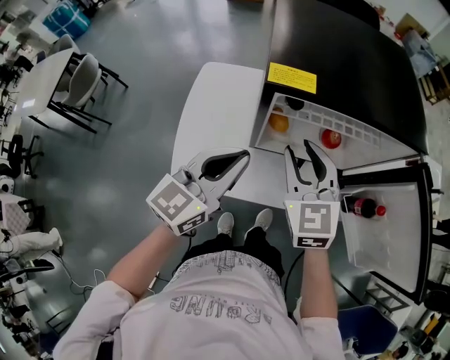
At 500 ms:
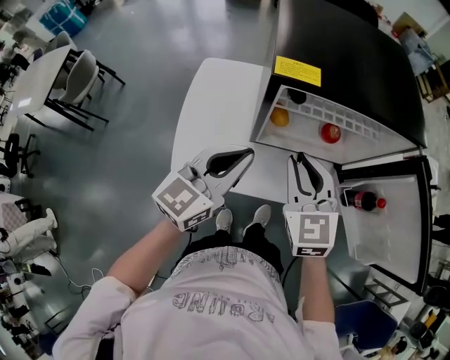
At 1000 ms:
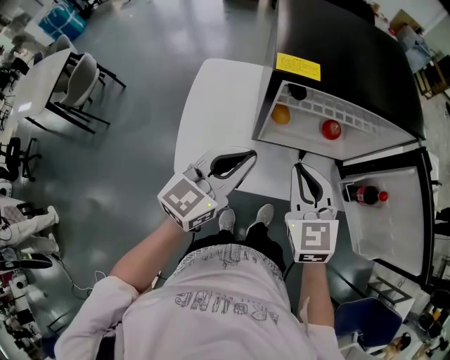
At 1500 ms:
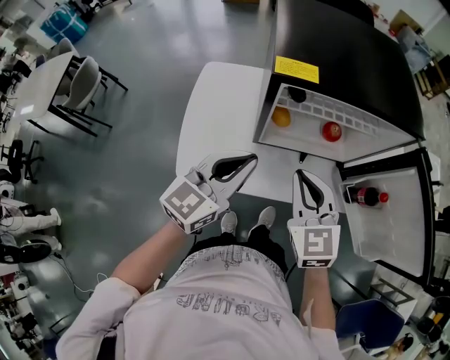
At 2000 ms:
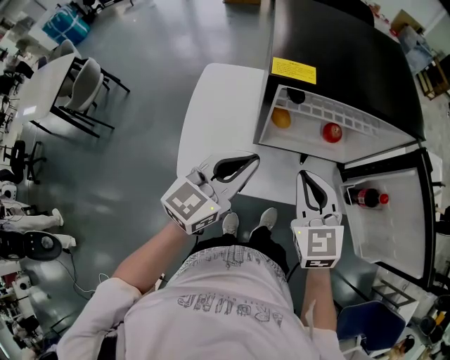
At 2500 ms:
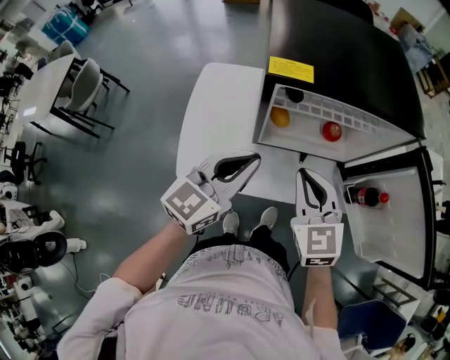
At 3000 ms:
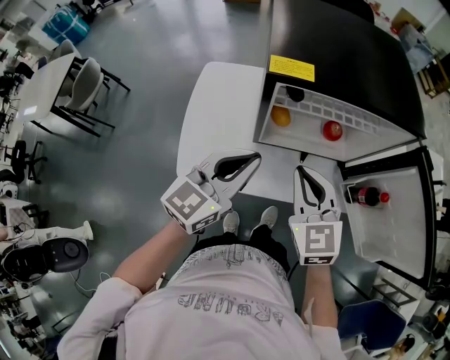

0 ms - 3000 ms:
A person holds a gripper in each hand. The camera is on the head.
0 ms - 1500 ms: The right gripper travels backward by about 10 cm, and closes its fingers.
1500 ms - 3000 ms: The grippers make only small movements.

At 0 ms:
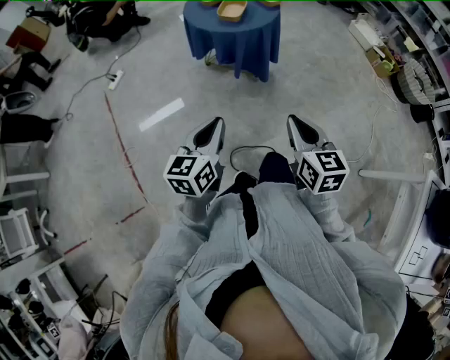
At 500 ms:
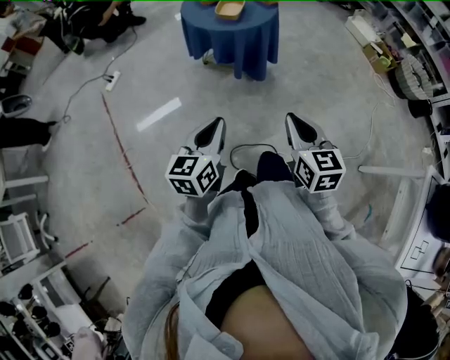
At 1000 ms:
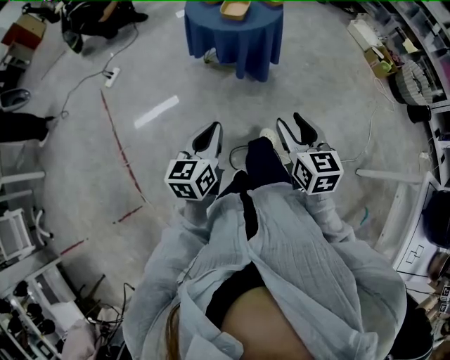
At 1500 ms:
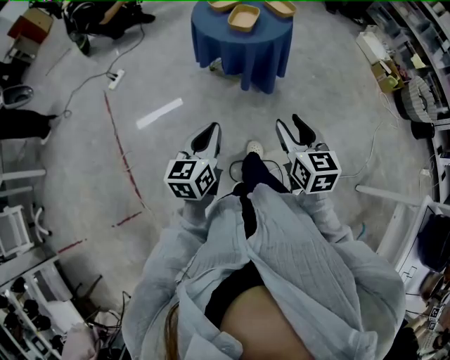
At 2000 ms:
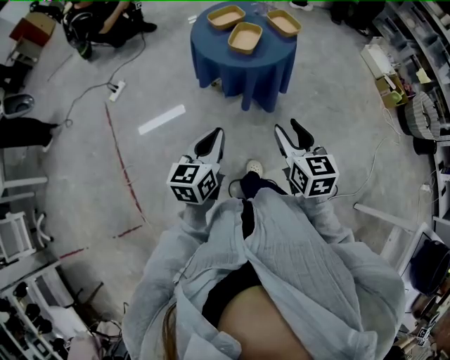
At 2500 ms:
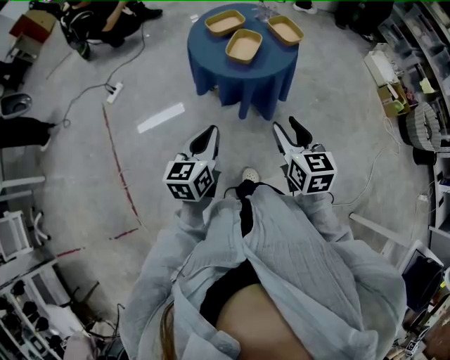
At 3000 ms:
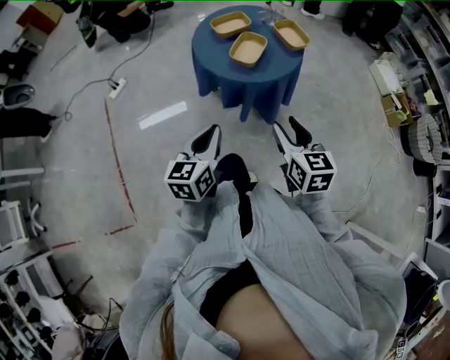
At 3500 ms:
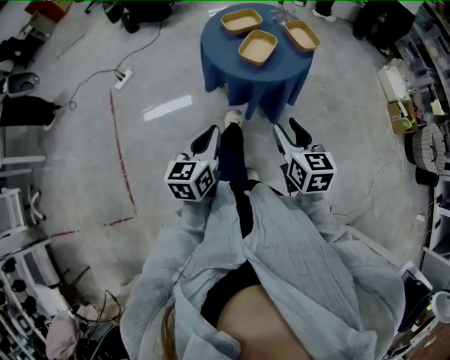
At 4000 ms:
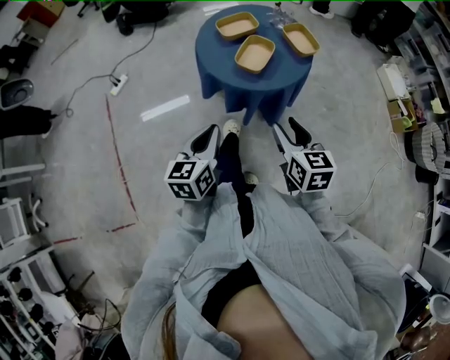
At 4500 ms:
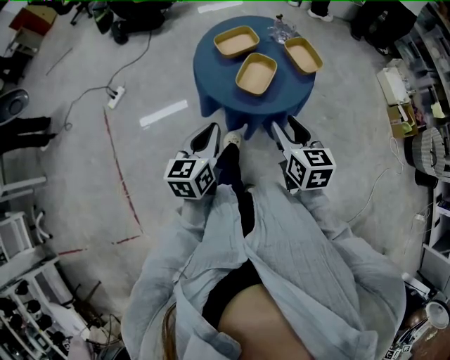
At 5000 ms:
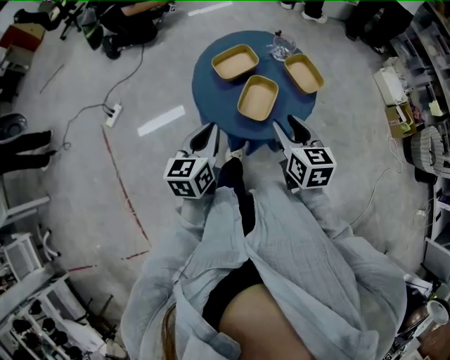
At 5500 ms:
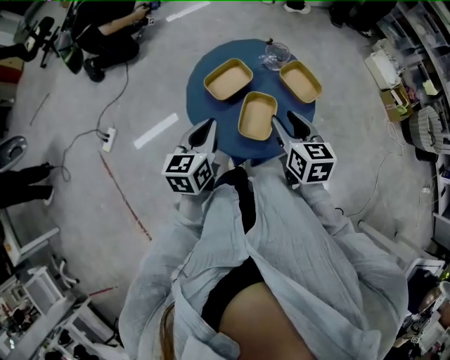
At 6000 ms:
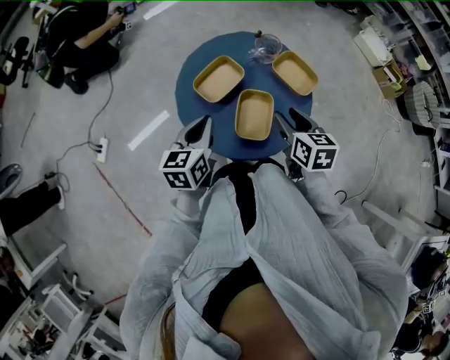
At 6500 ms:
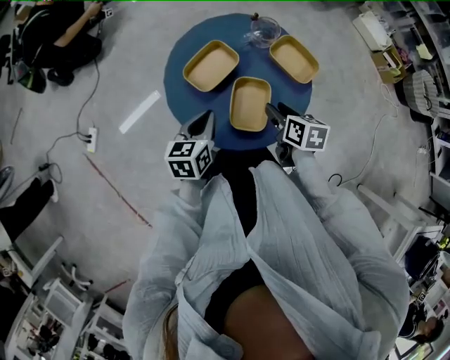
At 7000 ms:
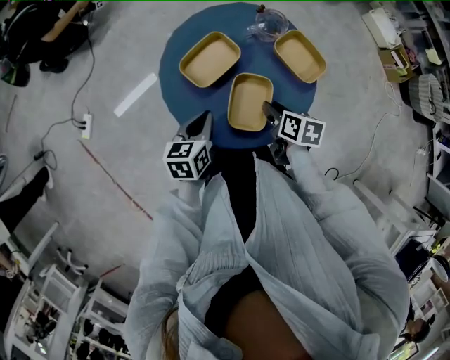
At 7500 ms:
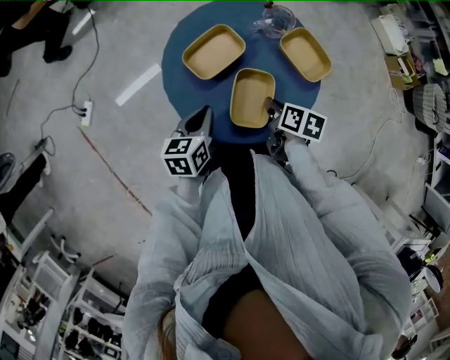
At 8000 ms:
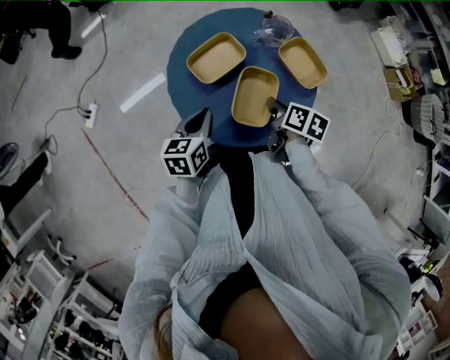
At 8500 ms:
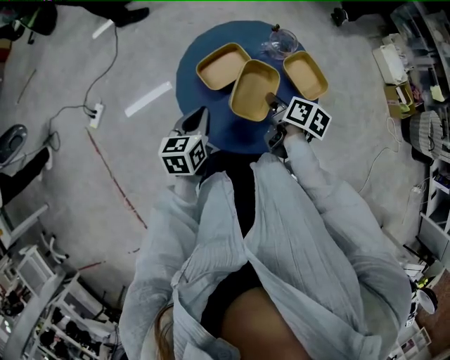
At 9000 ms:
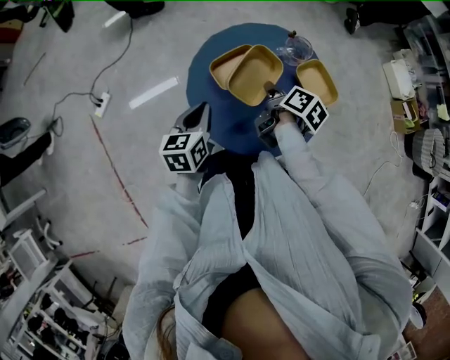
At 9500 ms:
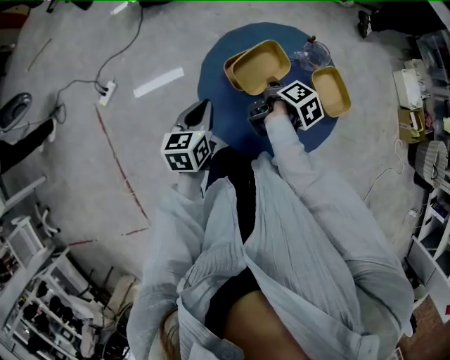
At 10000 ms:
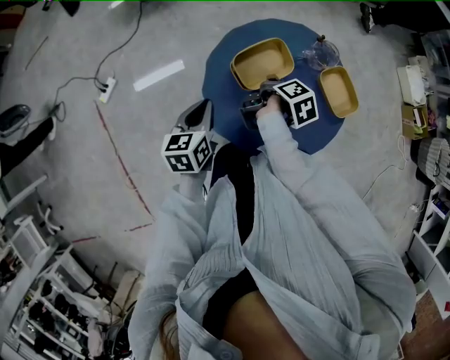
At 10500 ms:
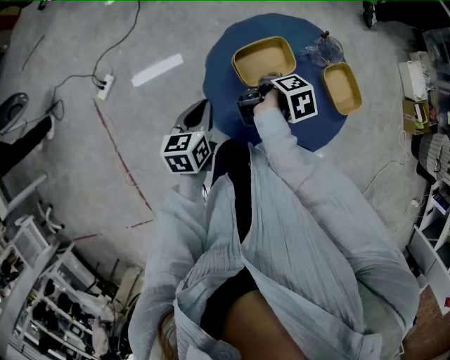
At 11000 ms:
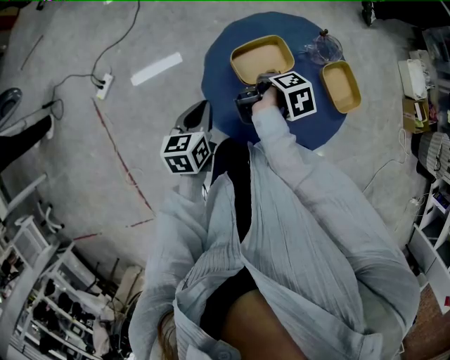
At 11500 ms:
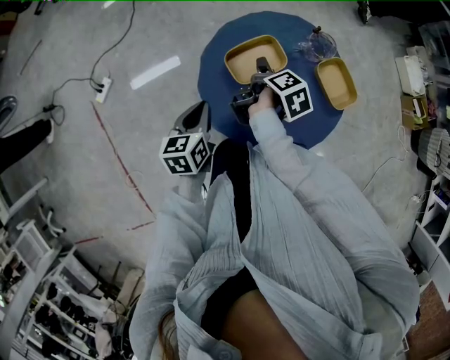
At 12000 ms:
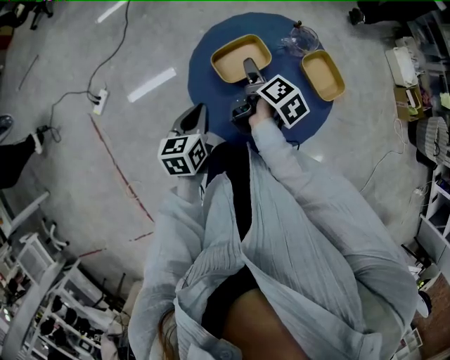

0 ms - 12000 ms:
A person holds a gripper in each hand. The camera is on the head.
0 ms - 2000 ms: Both grippers travel together forward, some 20 cm. The right gripper opens its fingers.
2000 ms - 4000 ms: Both grippers travel together forward, roughly 15 cm.
4000 ms - 6000 ms: The grippers both shift forward by some 30 cm. The left gripper turns by approximately 20 degrees. Meanwhile the right gripper changes its angle by approximately 20 degrees.
6000 ms - 8000 ms: Both grippers move downward, some 10 cm. The right gripper swivels approximately 30 degrees.
8000 ms - 10000 ms: The right gripper goes about 15 cm forward and to the left, and swivels approximately 40 degrees; the left gripper heads to the left, covering some 10 cm.
10000 ms - 12000 ms: The right gripper opens up.

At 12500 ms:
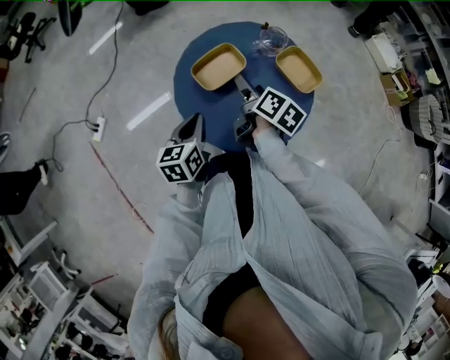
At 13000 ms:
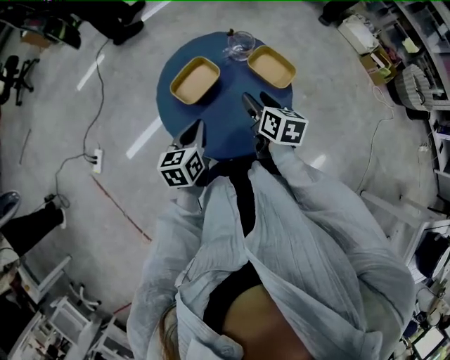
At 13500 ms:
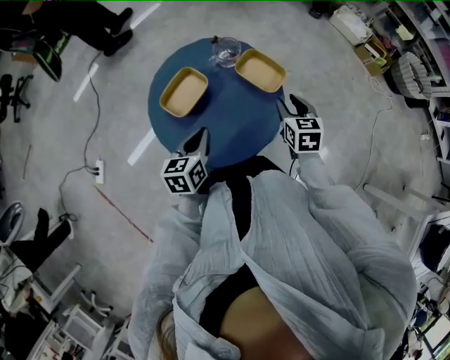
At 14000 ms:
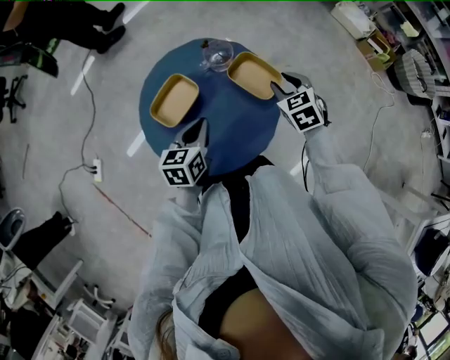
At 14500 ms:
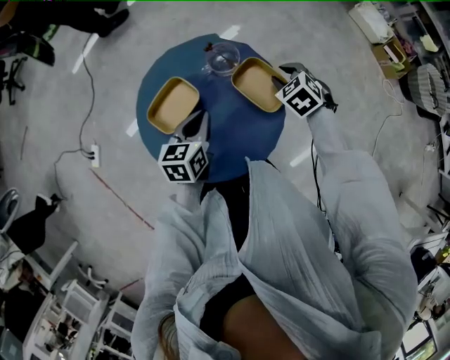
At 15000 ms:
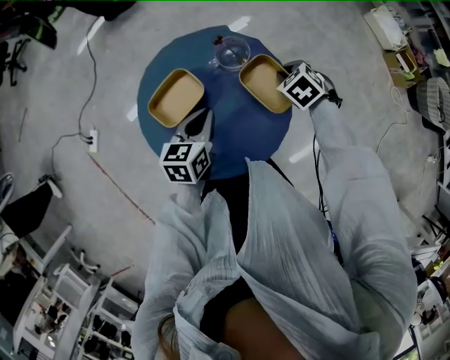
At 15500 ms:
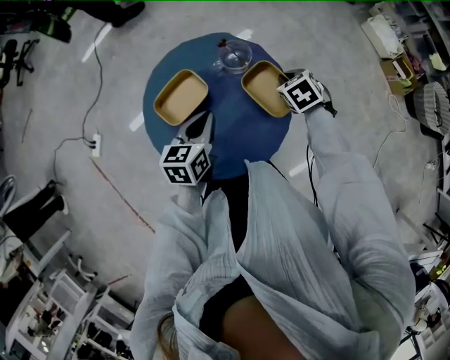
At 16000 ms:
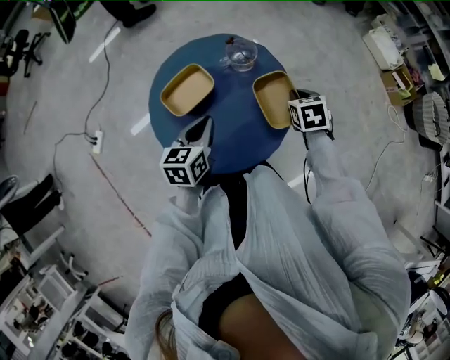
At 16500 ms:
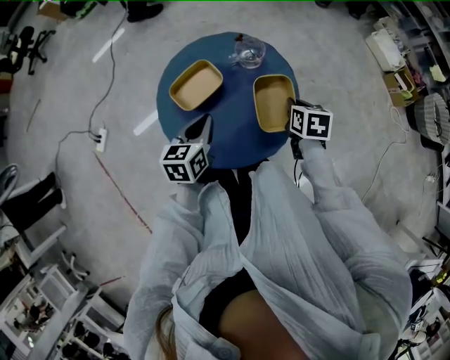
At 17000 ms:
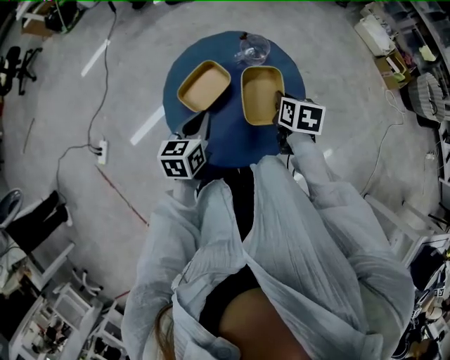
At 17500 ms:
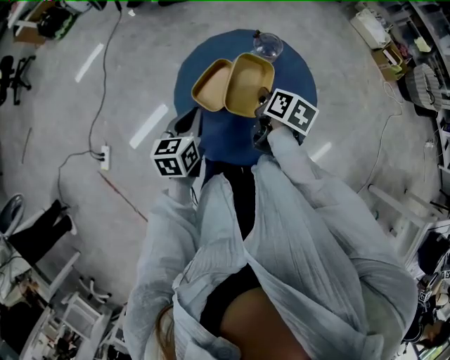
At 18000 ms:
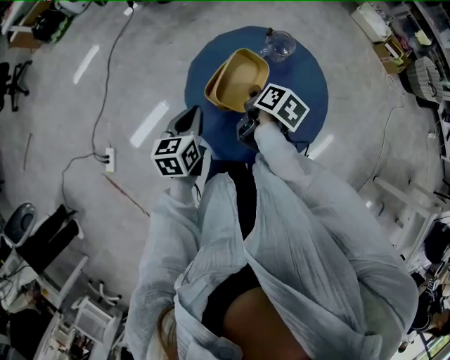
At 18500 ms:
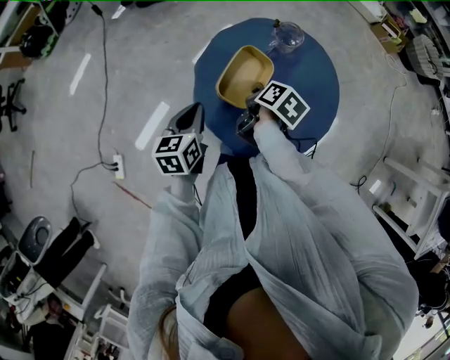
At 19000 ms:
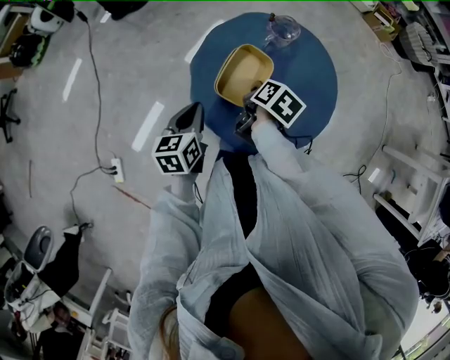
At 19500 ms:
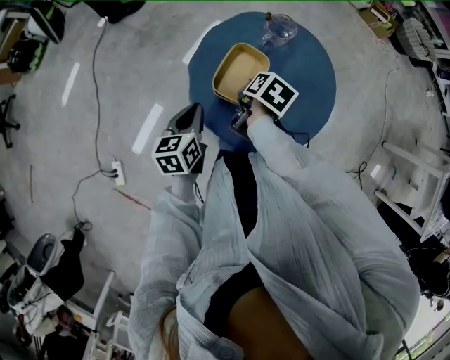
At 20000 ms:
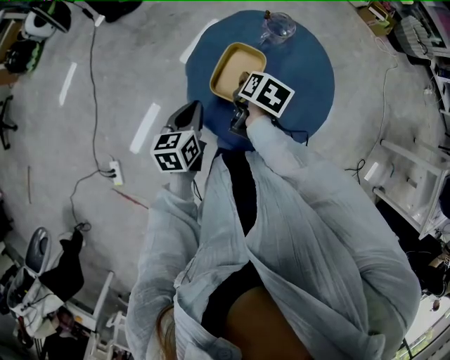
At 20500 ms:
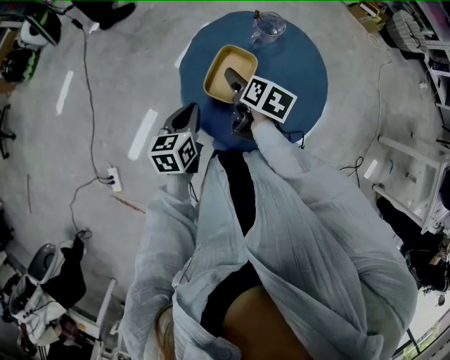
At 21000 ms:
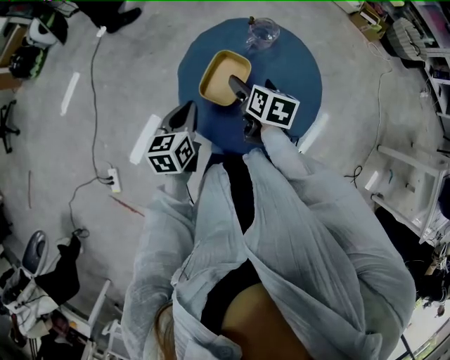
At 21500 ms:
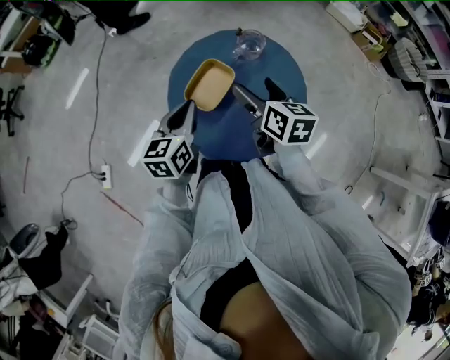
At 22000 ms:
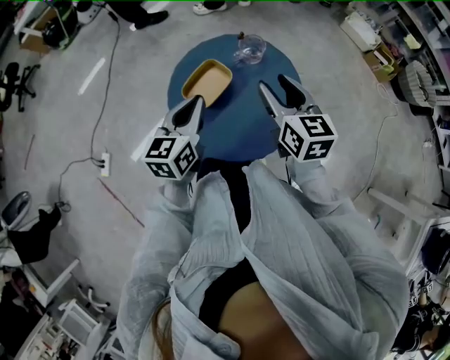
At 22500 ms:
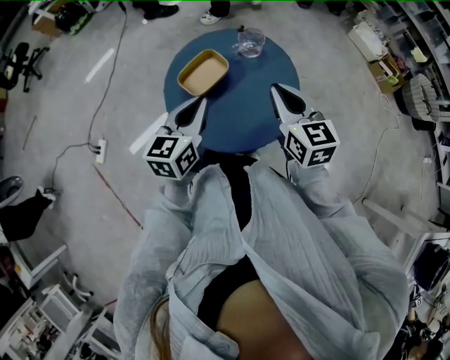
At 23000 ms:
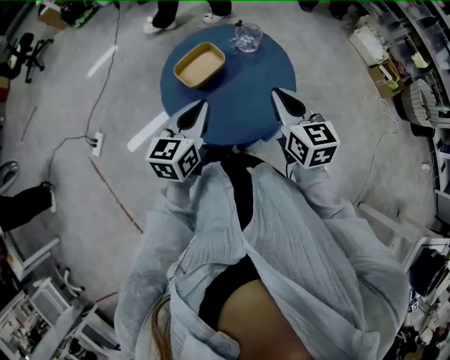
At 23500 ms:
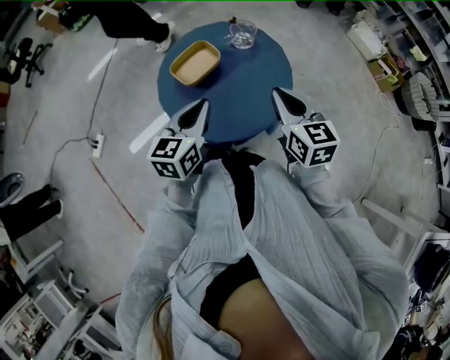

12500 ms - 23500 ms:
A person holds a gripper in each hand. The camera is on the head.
12500 ms - 14500 ms: The two grippers go about 20 cm to the right and forward. The right gripper rolls counterclockwise, seen from behind, by about 80 degrees, and closes up.
14500 ms - 16000 ms: The grippers both shift backward by some 5 cm. The right gripper swivels roughly 30 degrees.
16000 ms - 18000 ms: Both grippers move to the left, approximately 25 cm. The right gripper rotates around the line of its fingers by approximately 70 degrees, clockwise from behind.
18000 ms - 20000 ms: The grippers move only a little.
20000 ms - 21500 ms: The two grippers go approximately 15 cm upward and to the right. The right gripper changes its angle by approximately 40 degrees, and opens up.
21500 ms - 23500 ms: The left gripper goes roughly 15 cm backward and to the right, while the right gripper travels to the right and backward by roughly 15 cm, rotates approximately 30 degrees, and closes its fingers.

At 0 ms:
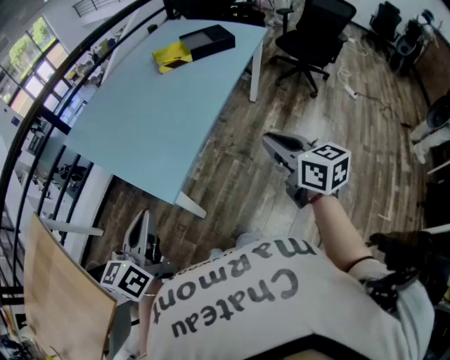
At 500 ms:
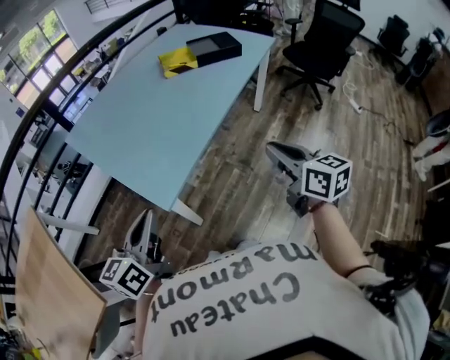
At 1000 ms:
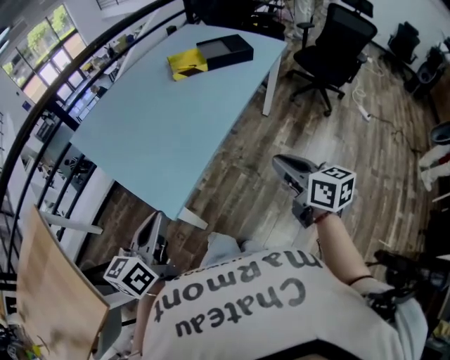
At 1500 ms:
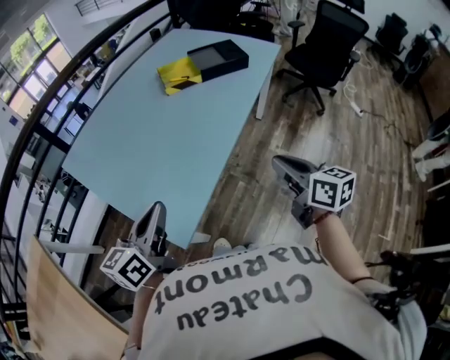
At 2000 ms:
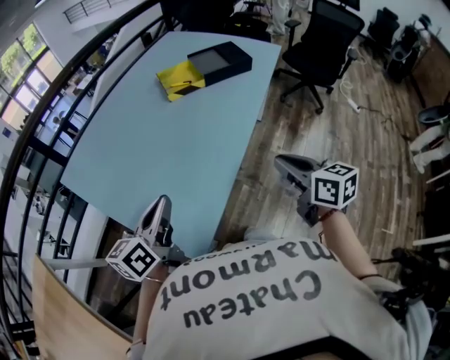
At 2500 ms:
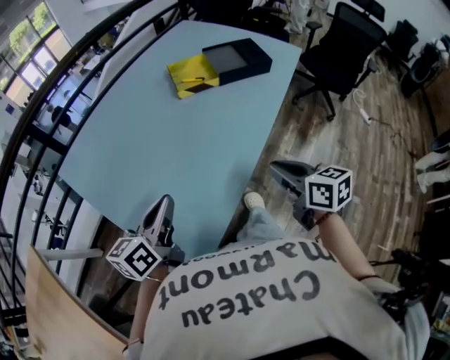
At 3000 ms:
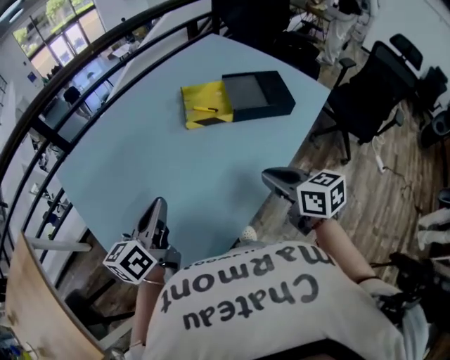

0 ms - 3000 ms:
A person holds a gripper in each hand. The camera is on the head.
0 ms - 1500 ms: Both grippers move forward, some 15 cm.
1500 ms - 3000 ms: The two grippers go roughly 30 cm forward. The right gripper turns by about 30 degrees.
